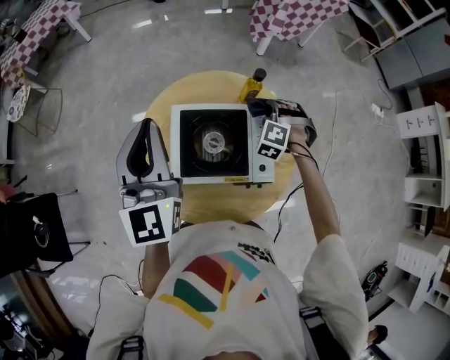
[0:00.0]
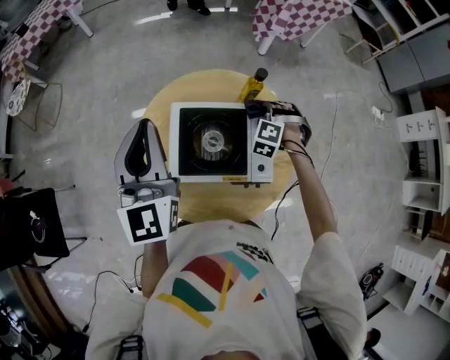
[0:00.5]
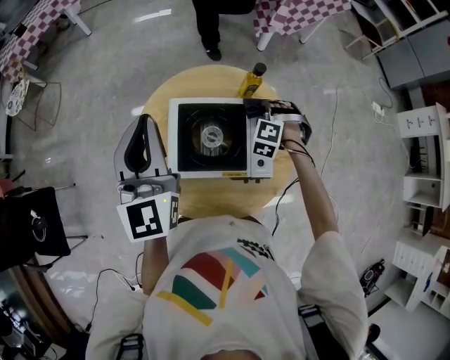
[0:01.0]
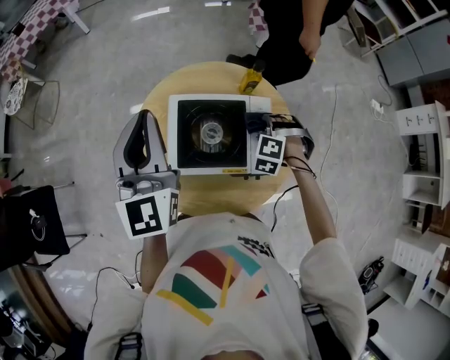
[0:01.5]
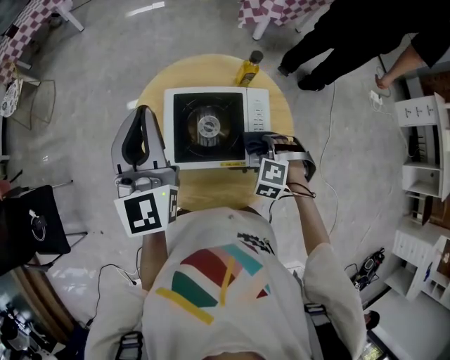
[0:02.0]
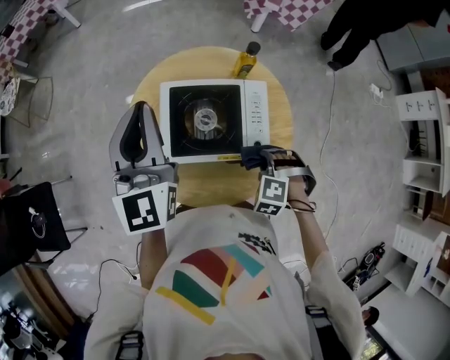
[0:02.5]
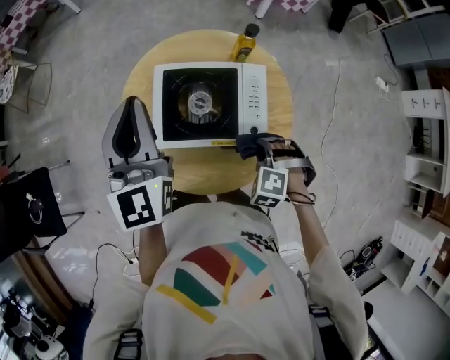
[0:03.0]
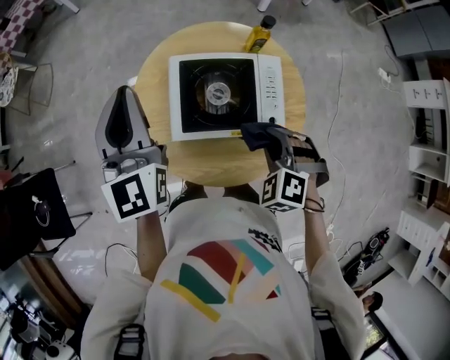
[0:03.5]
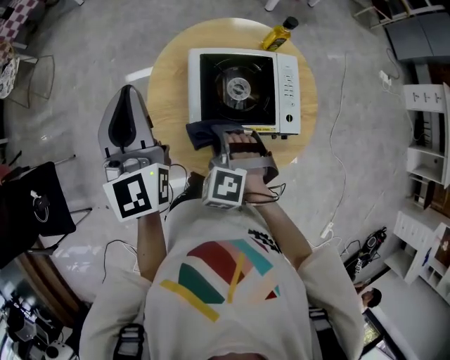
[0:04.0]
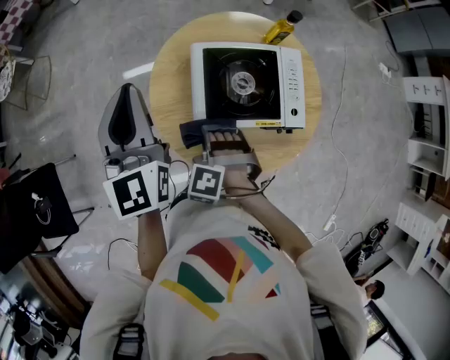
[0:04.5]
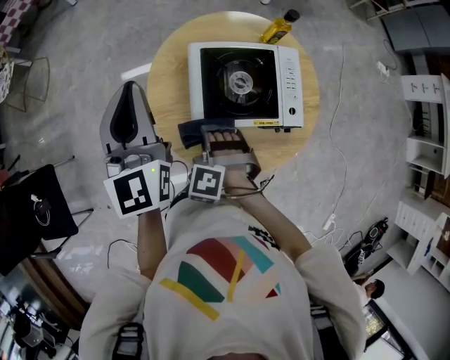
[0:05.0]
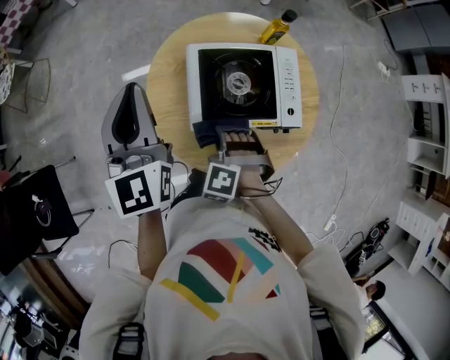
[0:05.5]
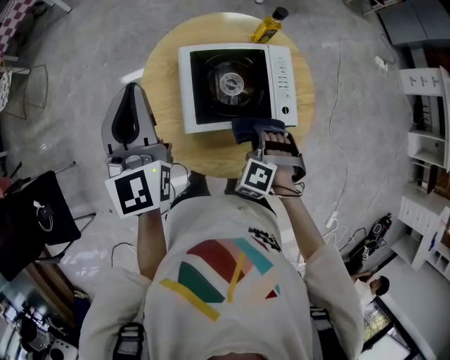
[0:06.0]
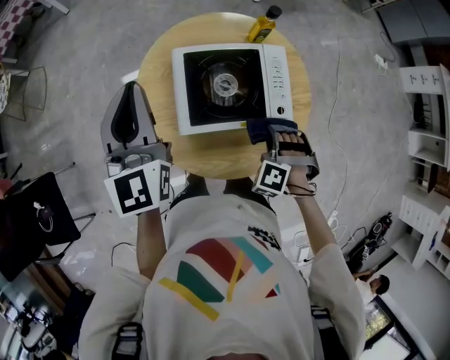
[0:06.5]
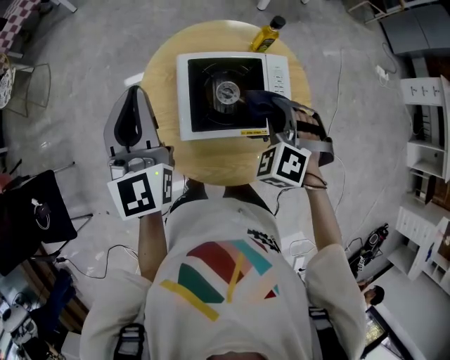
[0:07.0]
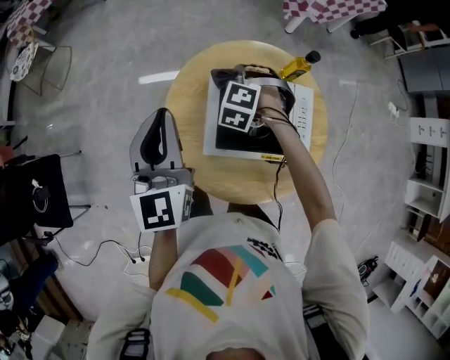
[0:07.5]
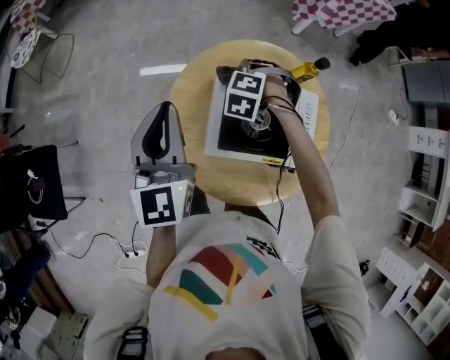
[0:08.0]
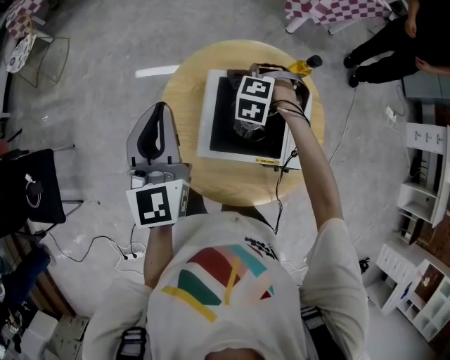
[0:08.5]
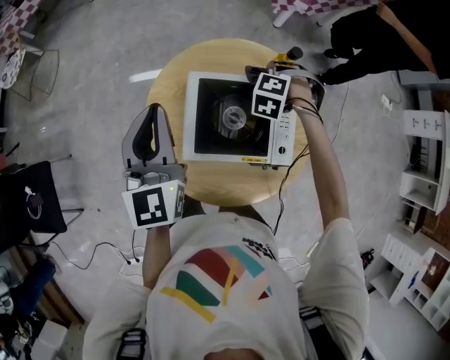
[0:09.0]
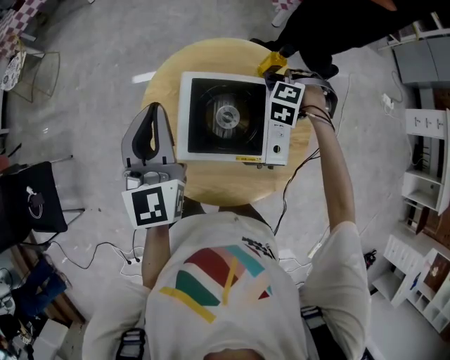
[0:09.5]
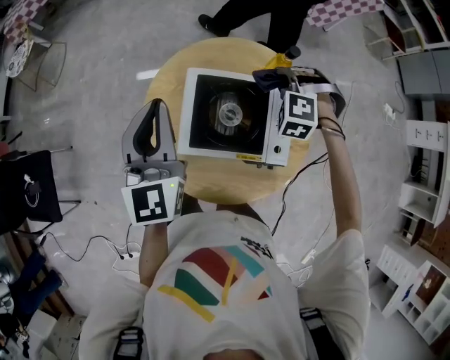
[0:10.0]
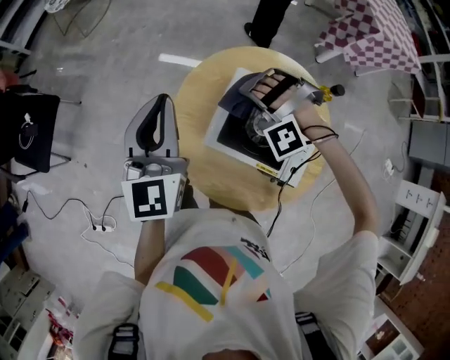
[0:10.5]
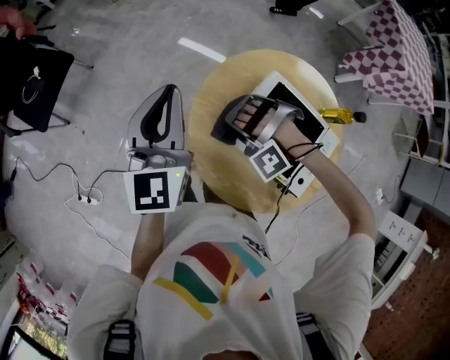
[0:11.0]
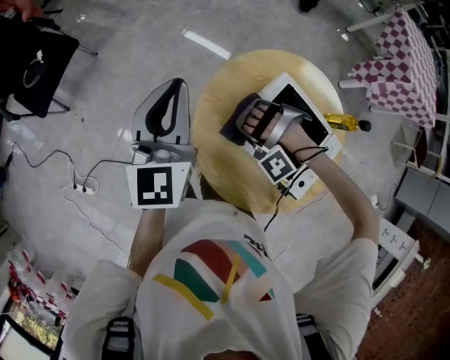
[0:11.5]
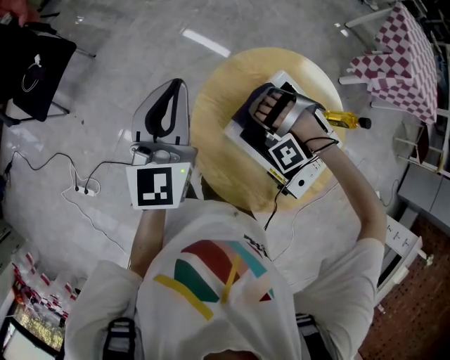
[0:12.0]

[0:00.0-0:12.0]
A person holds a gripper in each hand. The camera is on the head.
0:02.0 to 0:04.0: The left gripper ends up roughly 10 cm from where it was.
0:08.0 to 0:10.0: The left gripper ends up roughly 10 cm from where it was.
0:10.0 to 0:12.0: The left gripper changes place by approximately 20 cm, and swivels approximately 20 degrees.

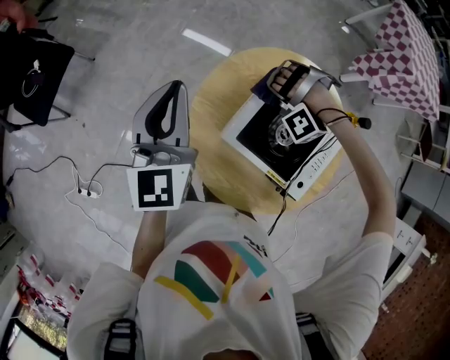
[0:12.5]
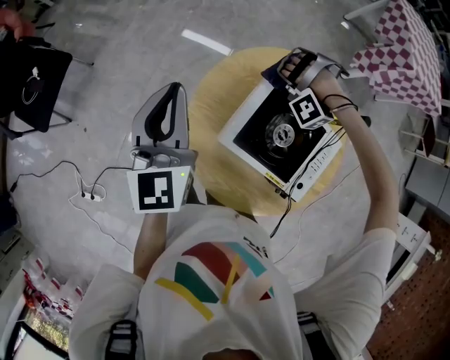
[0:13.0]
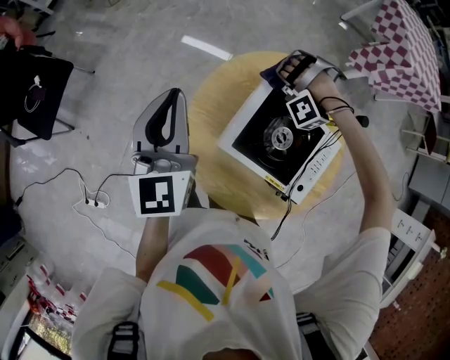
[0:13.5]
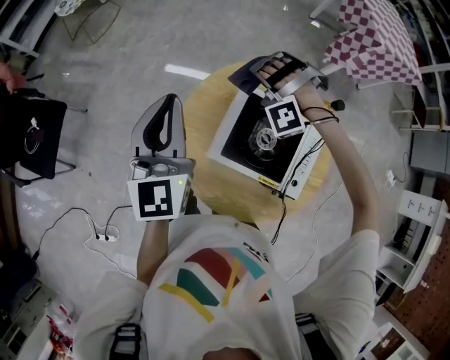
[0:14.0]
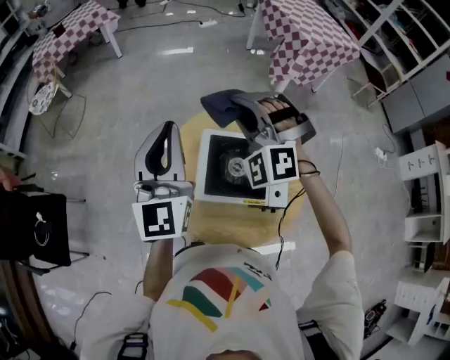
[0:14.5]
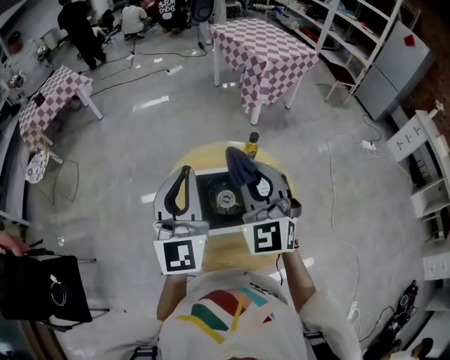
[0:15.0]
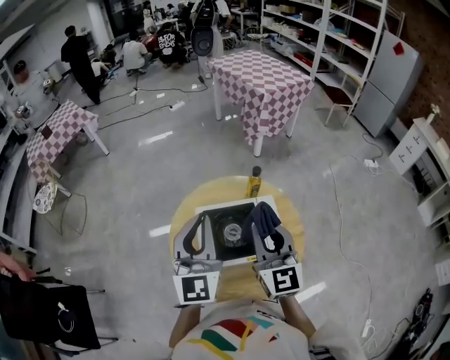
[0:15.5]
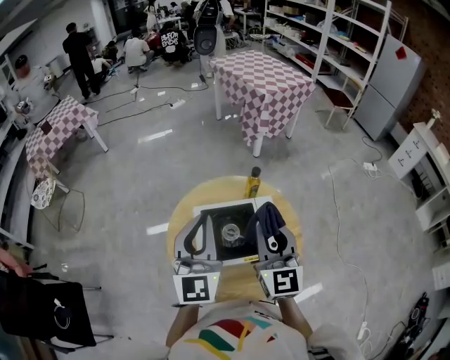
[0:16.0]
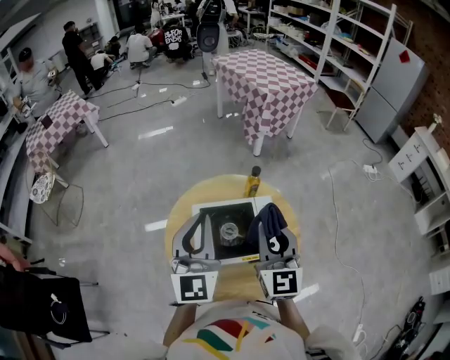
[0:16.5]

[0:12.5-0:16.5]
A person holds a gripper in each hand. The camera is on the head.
0:12.5 to 0:14.5: The left gripper travels upward by roughly 15 cm, and changes its angle by some 30 degrees.
0:14.5 to 0:16.5: The left gripper shifts by some 10 cm.

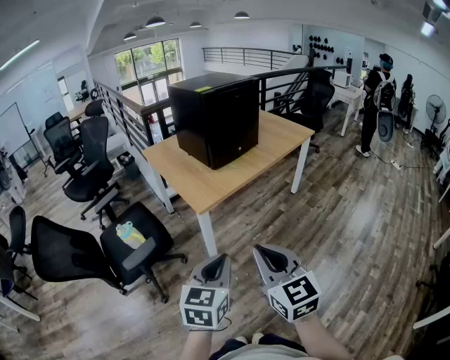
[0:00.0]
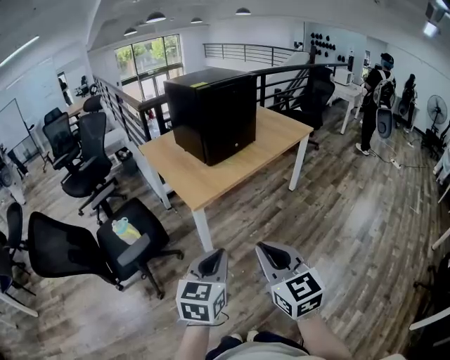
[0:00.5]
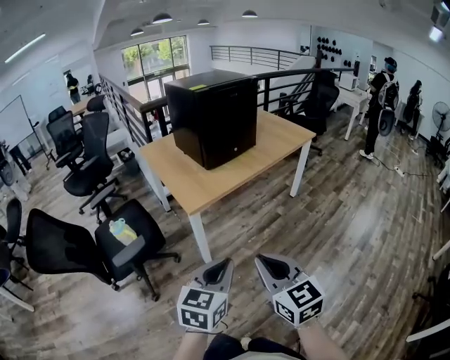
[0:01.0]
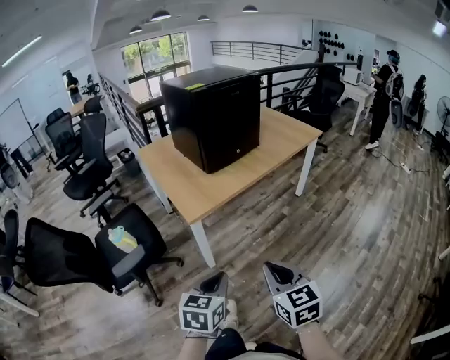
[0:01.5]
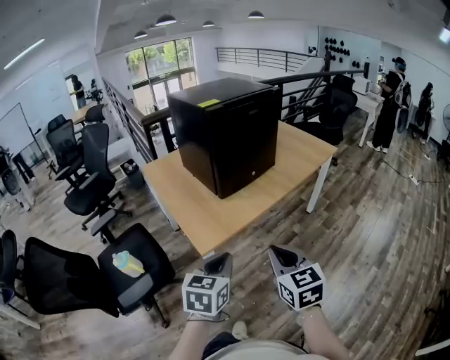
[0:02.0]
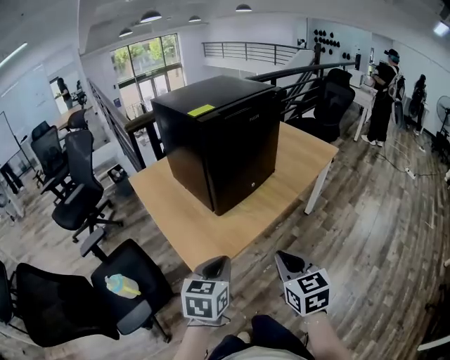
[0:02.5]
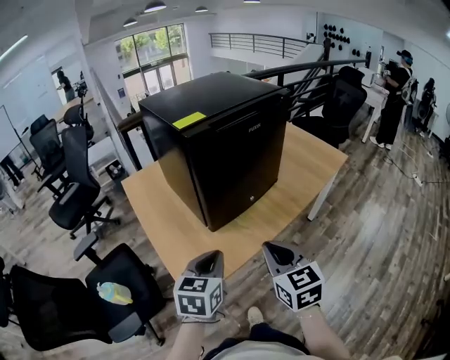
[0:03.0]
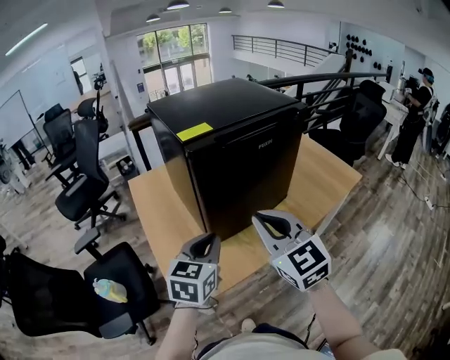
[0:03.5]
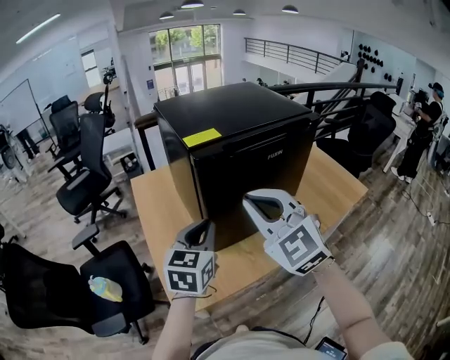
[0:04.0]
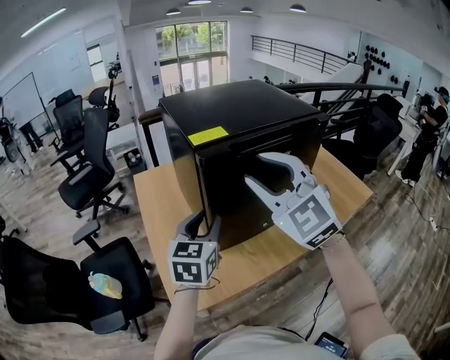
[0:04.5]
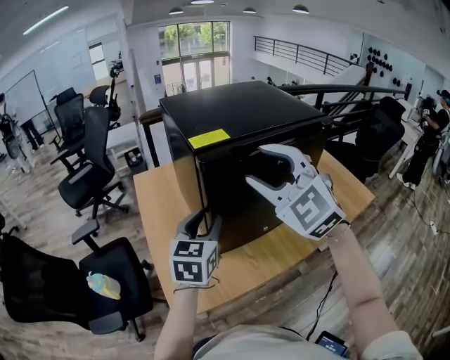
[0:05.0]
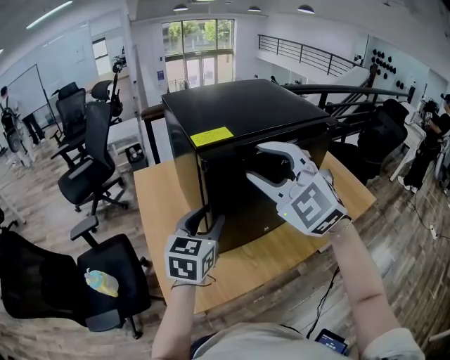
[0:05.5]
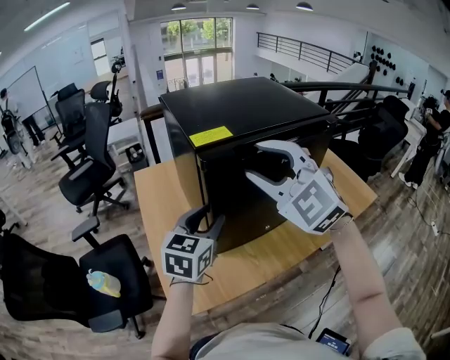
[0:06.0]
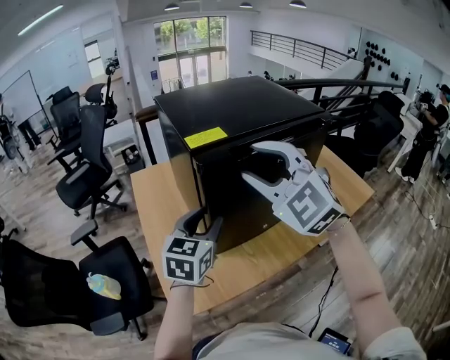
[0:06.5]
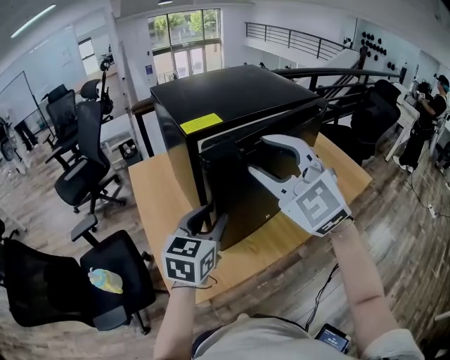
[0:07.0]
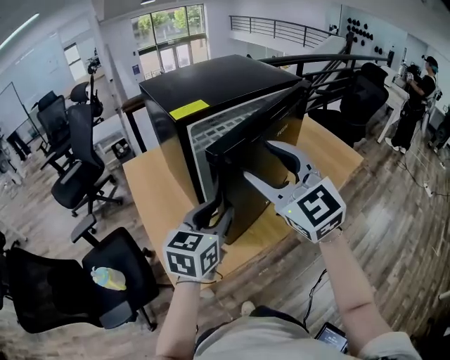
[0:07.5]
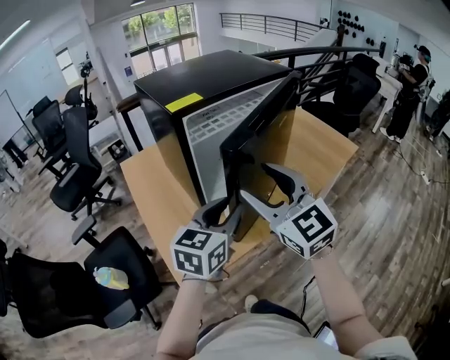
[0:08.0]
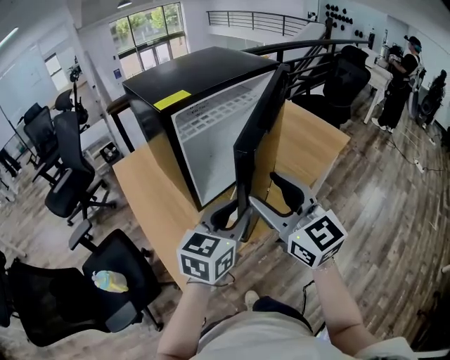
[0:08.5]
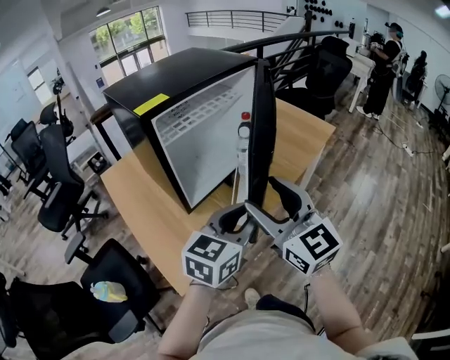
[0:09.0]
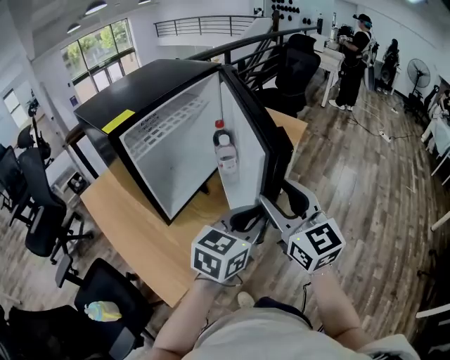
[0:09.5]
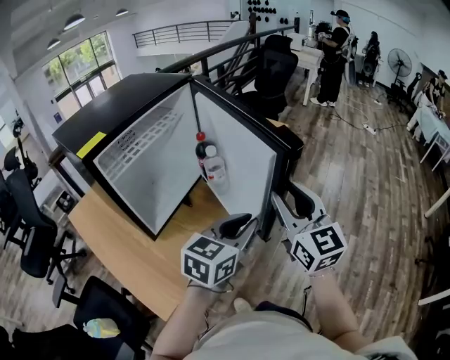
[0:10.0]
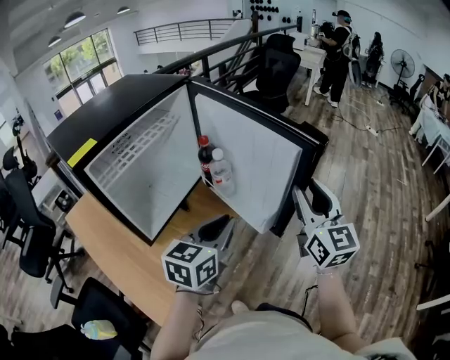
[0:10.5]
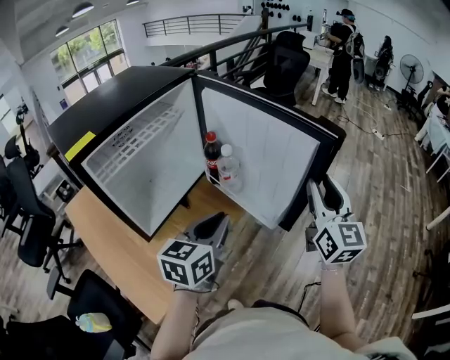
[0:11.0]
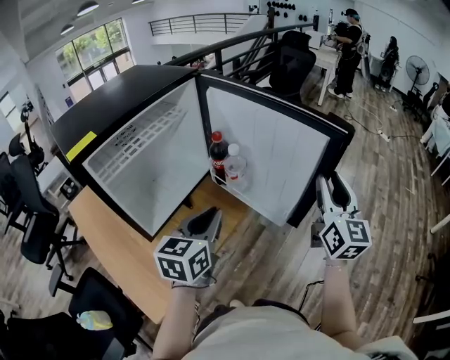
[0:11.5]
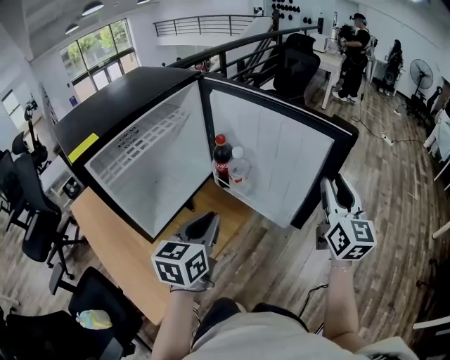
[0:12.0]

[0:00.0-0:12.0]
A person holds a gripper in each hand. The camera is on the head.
0:00.0 to 0:02.0: The two grippers go some 30 cm forward.
0:02.0 to 0:04.0: The two grippers travel together, forward, approximately 40 cm. The right gripper twists roughly 40 degrees counterclockwise, seen from behind.
0:04.0 to 0:06.0: The two grippers go approximately 5 cm forward. The left gripper opens. Meanwhile the right gripper opens.
0:06.0 to 0:08.0: The right gripper heads backward and downward, covering approximately 15 cm, and changes its angle by approximately 40 degrees. Meanwhile the left gripper goes roughly 15 cm backward and to the right.
0:08.0 to 0:10.0: The right gripper moves roughly 25 cm, rotates approximately 40 degrees, and closes up. Meanwhile the left gripper changes place by approximately 20 cm, and turns by some 40 degrees.
0:10.0 to 0:12.0: The left gripper travels to the left and forward by roughly 10 cm, and rotates roughly 20 degrees; the right gripper heads forward and to the right, covering about 15 cm.
